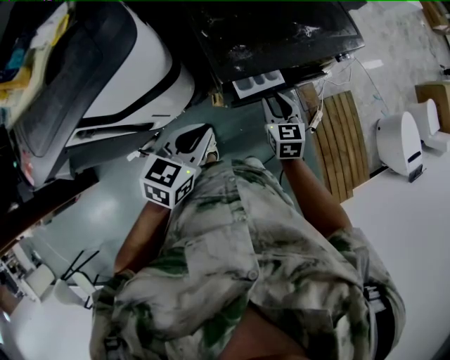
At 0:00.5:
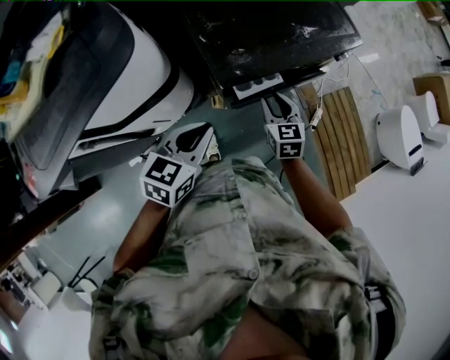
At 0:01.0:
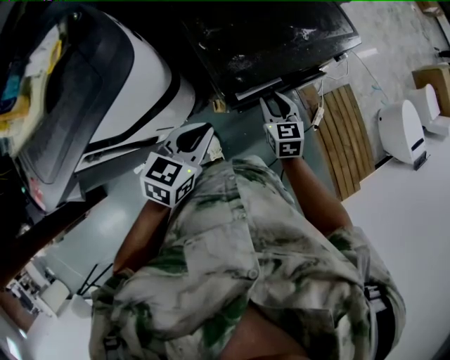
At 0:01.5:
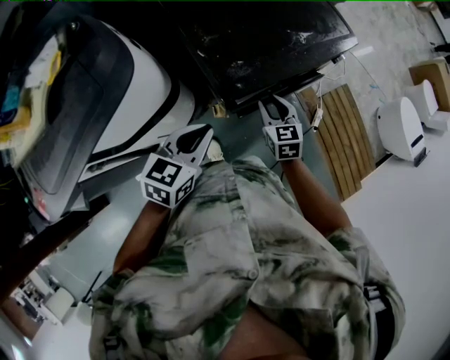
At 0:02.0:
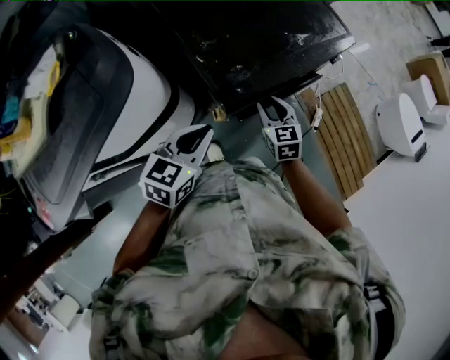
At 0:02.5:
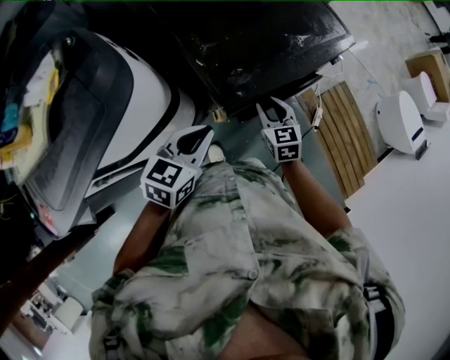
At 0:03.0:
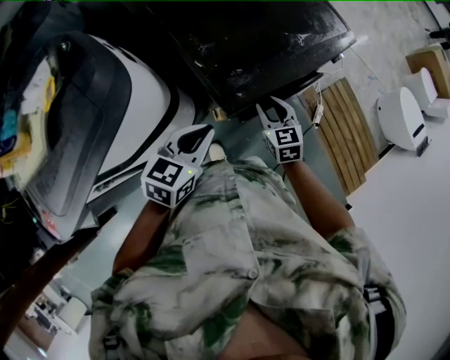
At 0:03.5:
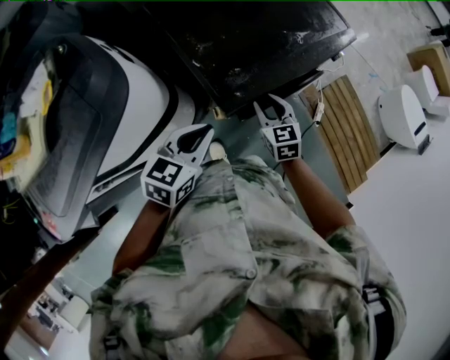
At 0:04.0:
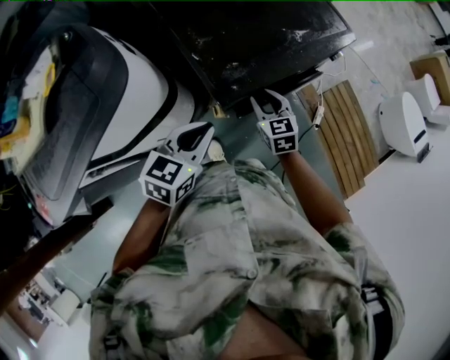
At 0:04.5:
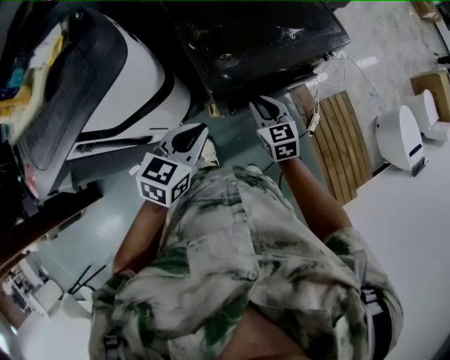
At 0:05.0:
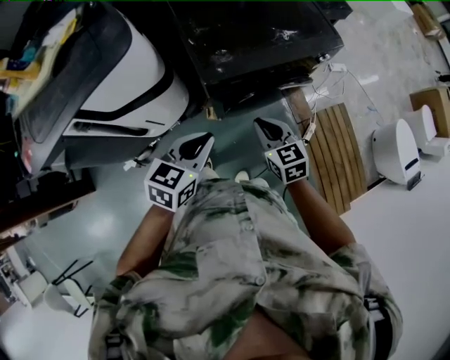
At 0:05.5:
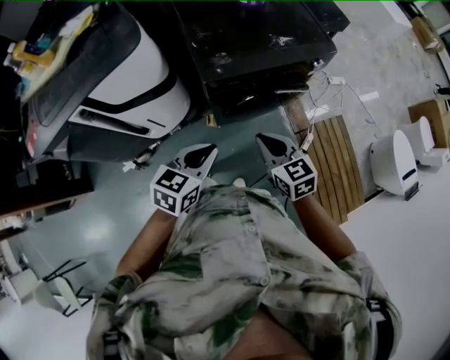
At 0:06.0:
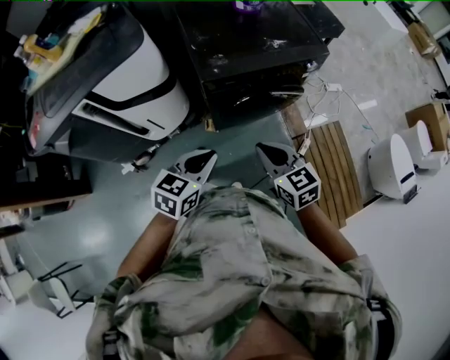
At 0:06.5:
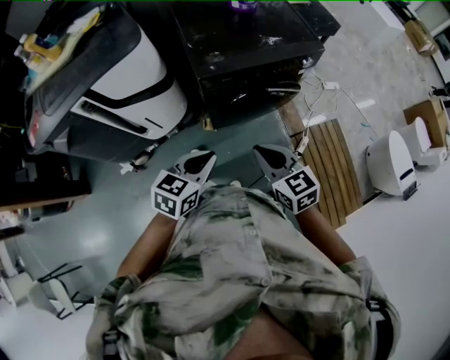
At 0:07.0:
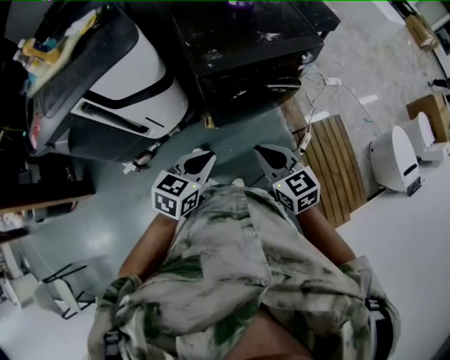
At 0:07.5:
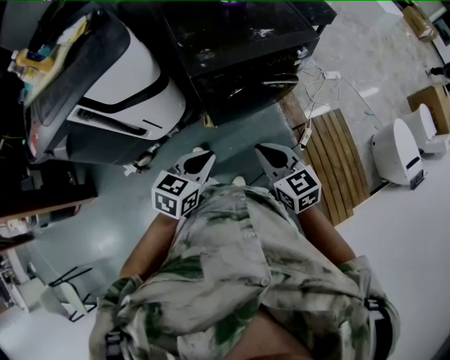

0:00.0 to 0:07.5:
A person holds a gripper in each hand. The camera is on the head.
0:00.0 to 0:02.0: The right gripper ends up about 5 cm from where it was. Meanwhile the left gripper heads forward, covering approximately 5 cm.
0:02.0 to 0:04.0: The grippers move only a little.
0:04.0 to 0:05.5: The right gripper shifts approximately 25 cm backward and upward, changes its angle by about 20 degrees, and closes, while the left gripper moves backward and to the right, roughly 20 cm.
0:05.5 to 0:07.5: Both grippers travel together backward, approximately 10 cm.

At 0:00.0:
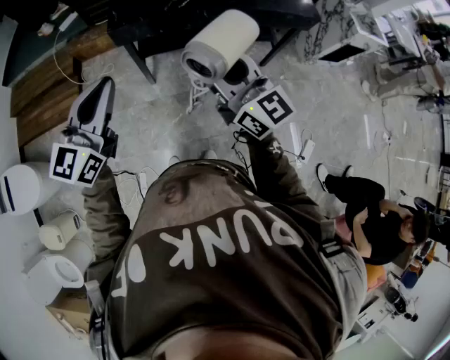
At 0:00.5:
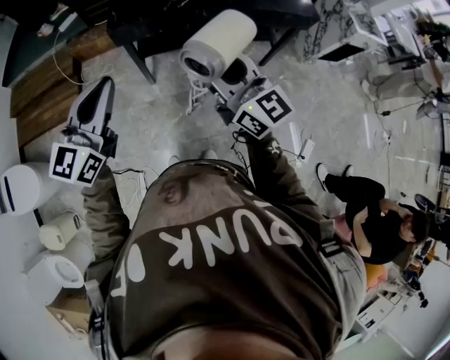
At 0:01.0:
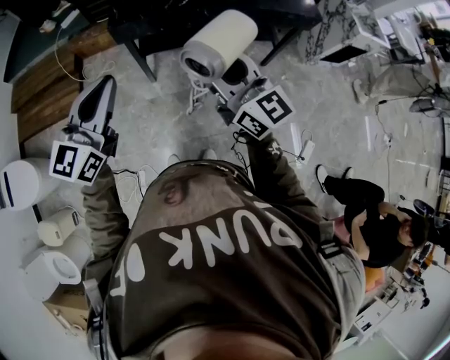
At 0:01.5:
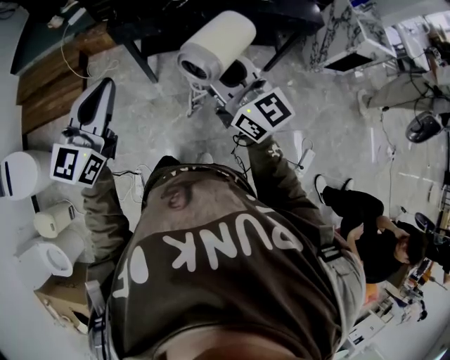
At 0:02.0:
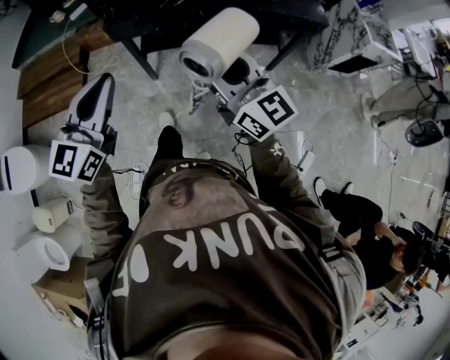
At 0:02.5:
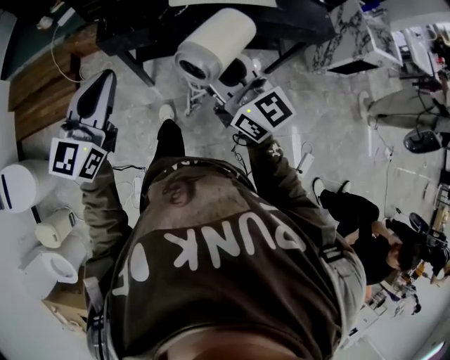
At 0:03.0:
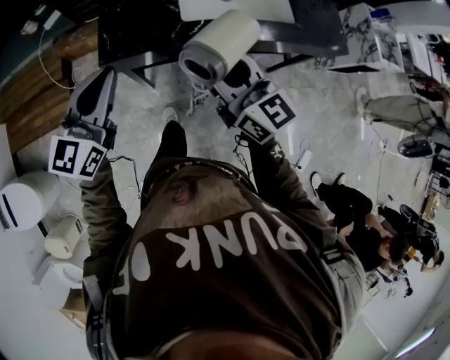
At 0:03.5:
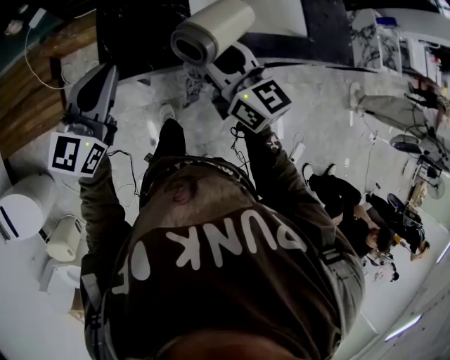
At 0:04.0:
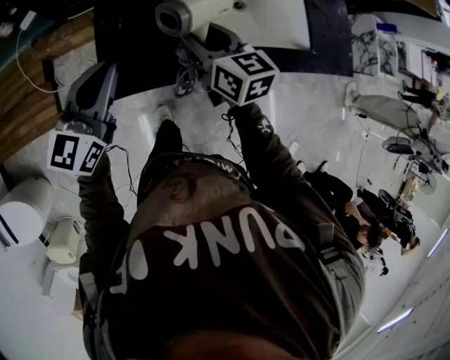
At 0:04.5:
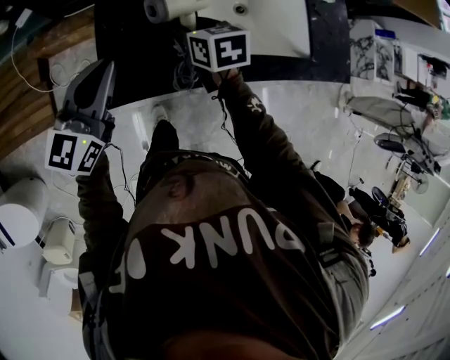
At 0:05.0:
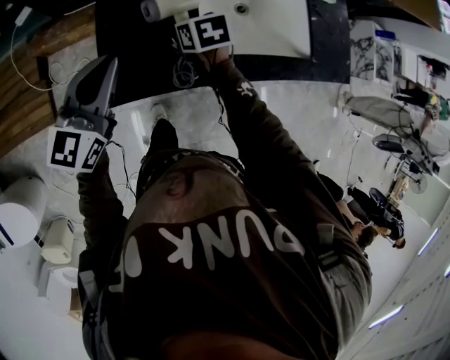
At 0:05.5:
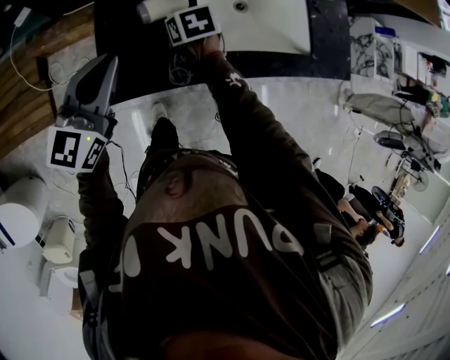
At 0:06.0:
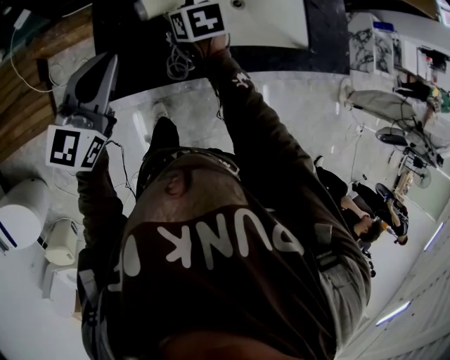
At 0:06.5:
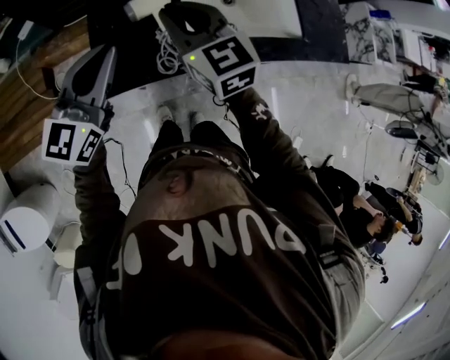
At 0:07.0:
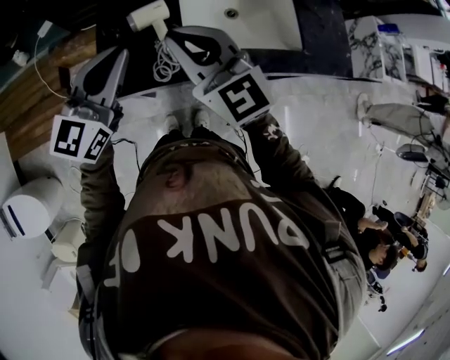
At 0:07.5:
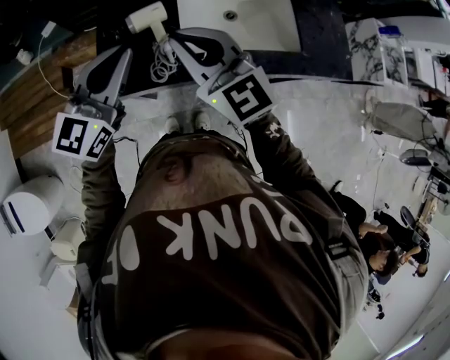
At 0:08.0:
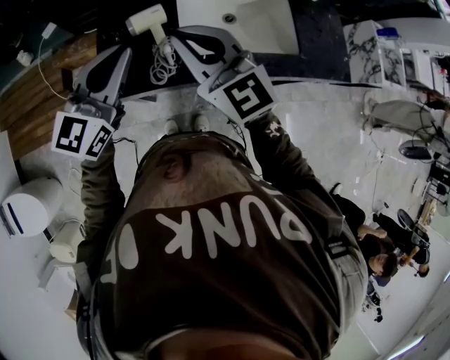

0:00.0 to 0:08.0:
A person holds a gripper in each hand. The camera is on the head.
0:00.0 to 0:02.0: Both grippers travel together to the right, approximately 10 cm.
0:02.0 to 0:04.0: The two grippers travel together, forward, approximately 50 cm. The right gripper tilts its fingers approximately 30 degrees downward.
0:04.0 to 0:06.0: The right gripper is displaced downward and forward by about 10 cm, and tilts its fingers roughly 30 degrees downward.
0:06.0 to 0:08.0: The right gripper is displaced upward and backward by approximately 30 cm, points its fingers roughly 50 degrees further upward, and closes its fingers, while the left gripper is displaced to the right and upward by approximately 15 cm.

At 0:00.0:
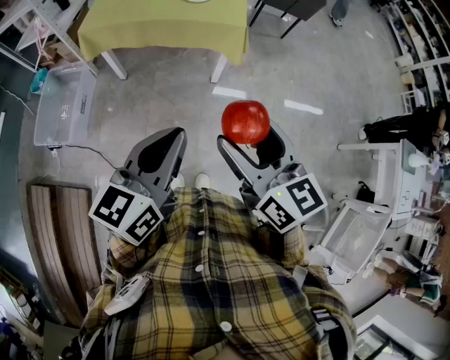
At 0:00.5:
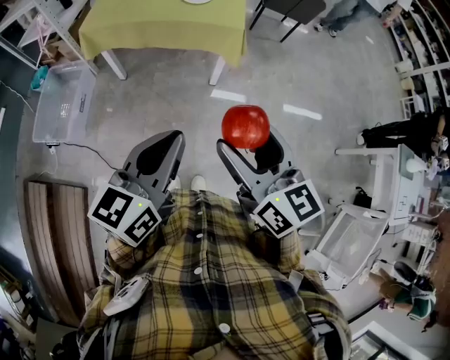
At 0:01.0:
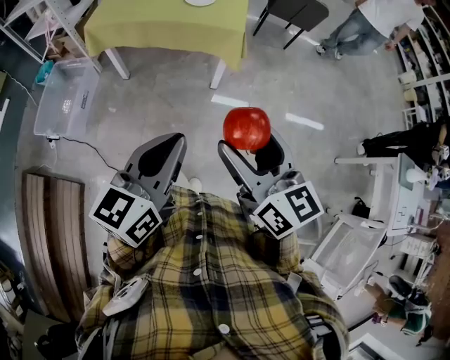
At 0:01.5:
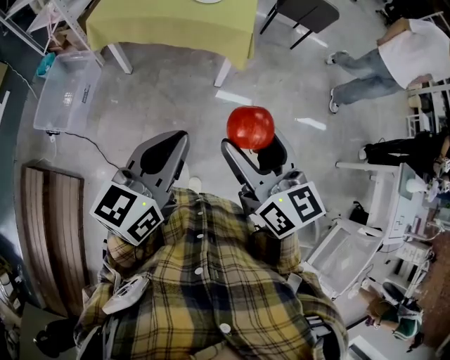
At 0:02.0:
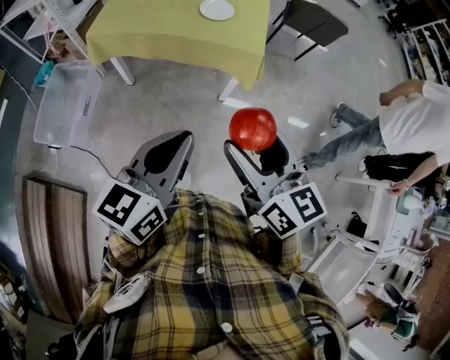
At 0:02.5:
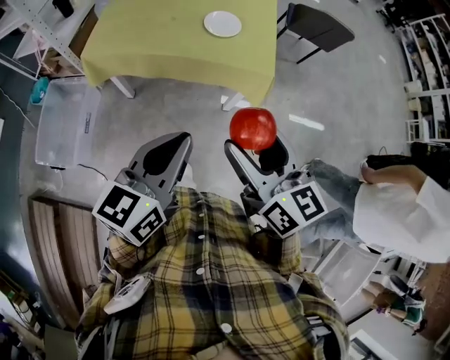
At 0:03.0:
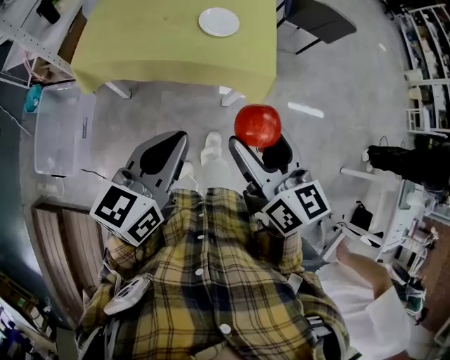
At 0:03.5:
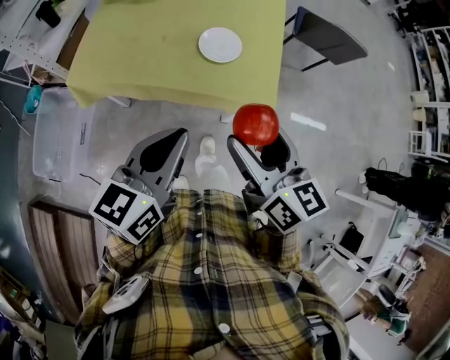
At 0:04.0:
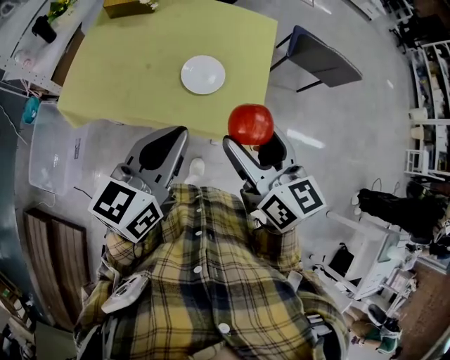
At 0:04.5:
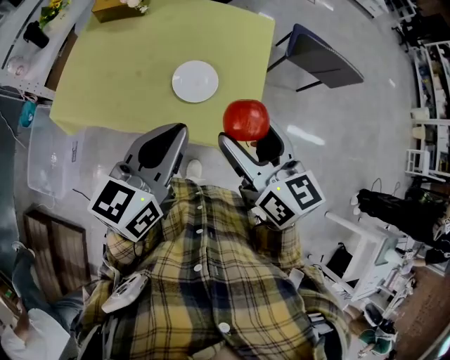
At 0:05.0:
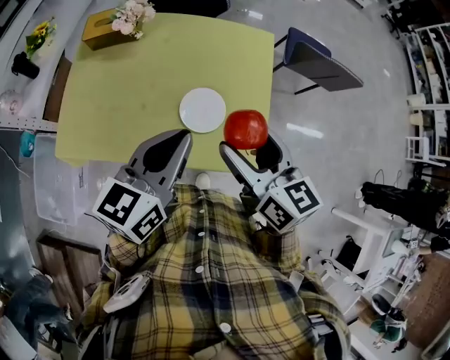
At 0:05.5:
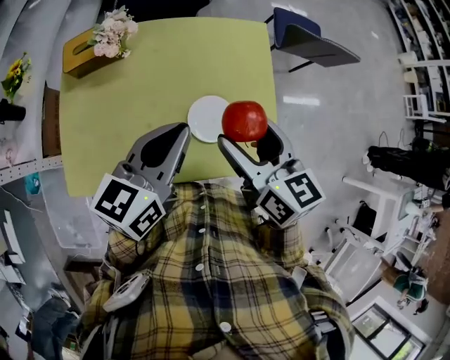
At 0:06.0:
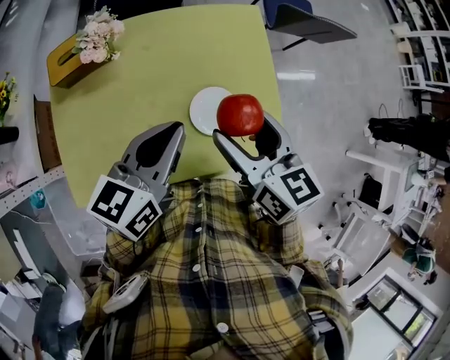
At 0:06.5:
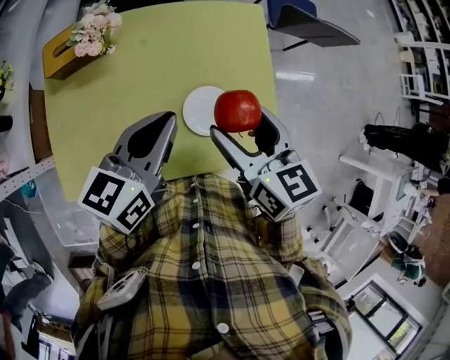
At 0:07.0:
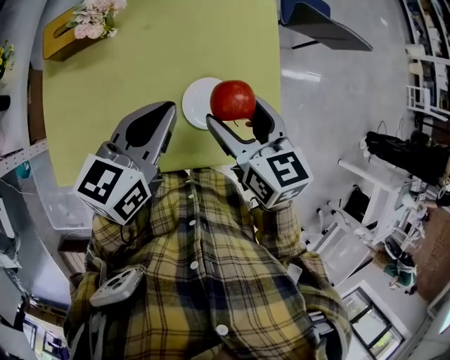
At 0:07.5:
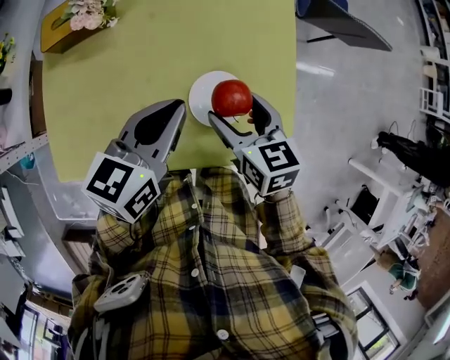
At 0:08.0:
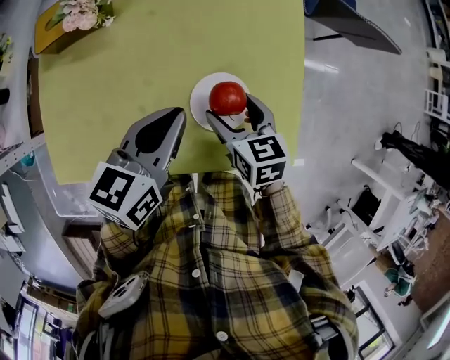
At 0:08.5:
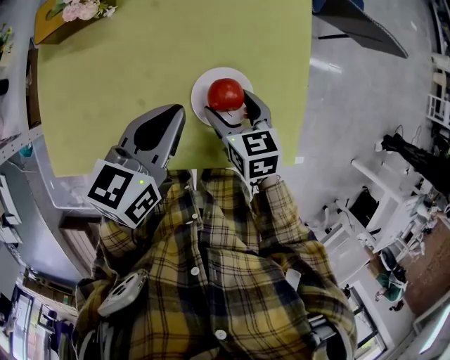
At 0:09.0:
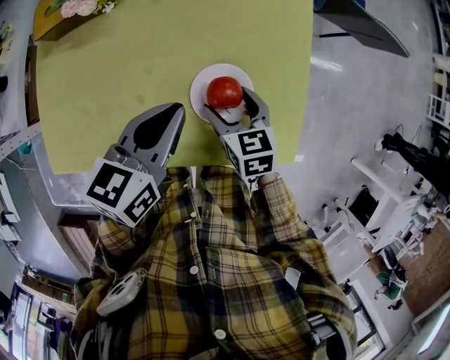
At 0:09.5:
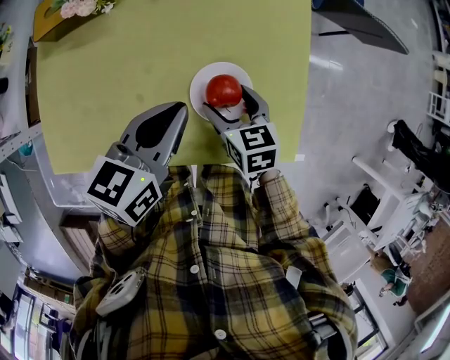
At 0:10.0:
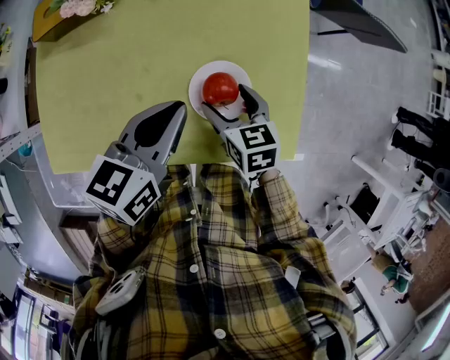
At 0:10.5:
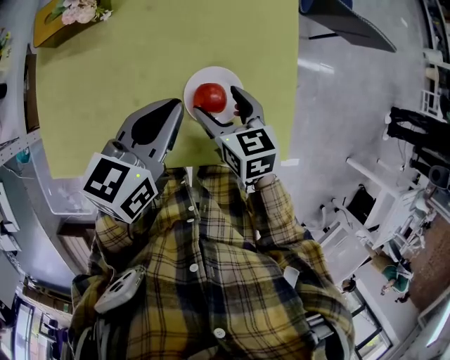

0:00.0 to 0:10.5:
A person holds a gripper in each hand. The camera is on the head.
0:00.0 to 0:02.0: Both grippers move forward, some 10 cm.
0:02.0 to 0:04.0: The two grippers go roughly 40 cm forward.
0:04.0 to 0:06.5: Both grippers travel together forward and to the left, roughly 25 cm. The left gripper swivels roughly 20 degrees.
0:06.5 to 0:08.5: The right gripper heads downward, covering some 25 cm, and changes its angle by some 20 degrees; the left gripper goes some 10 cm downward.
0:08.5 to 0:10.5: The grippers make only small movements.

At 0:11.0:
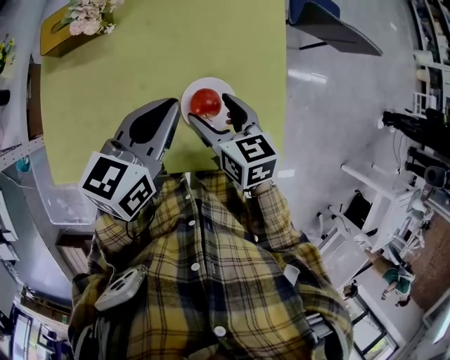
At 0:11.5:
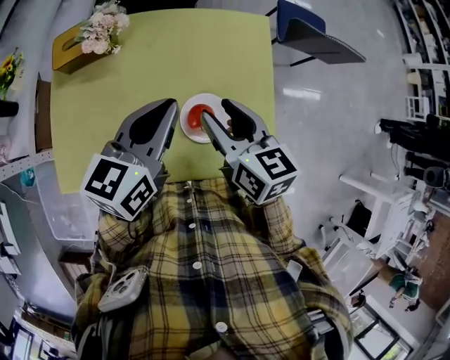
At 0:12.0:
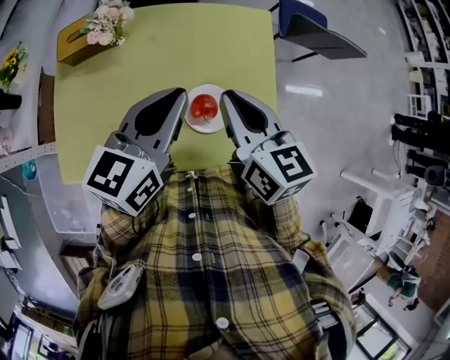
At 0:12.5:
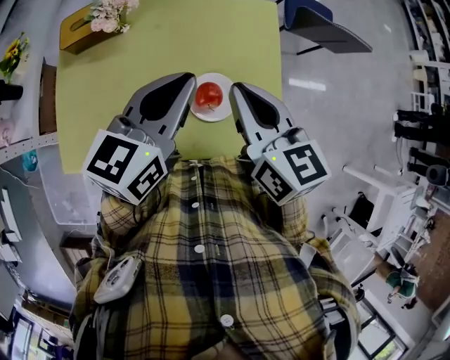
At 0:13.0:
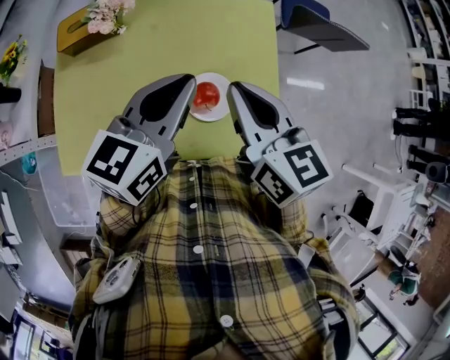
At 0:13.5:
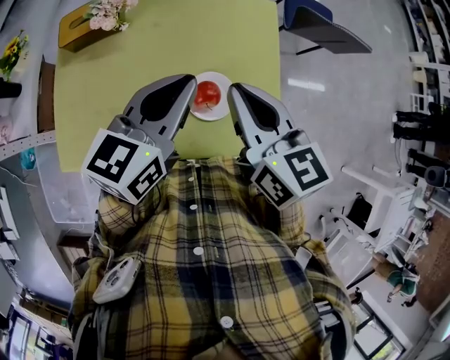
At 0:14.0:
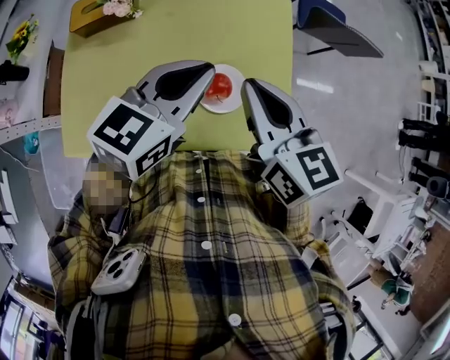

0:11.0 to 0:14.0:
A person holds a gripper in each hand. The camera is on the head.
0:11.0 to 0:12.5: The right gripper shifts approximately 20 cm upward, and closes its fingers; the left gripper goes approximately 10 cm upward.
0:12.5 to 0:14.0: The grippers move only a little.
